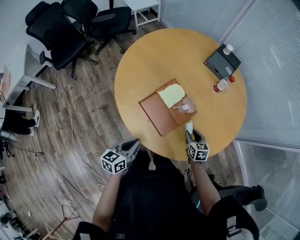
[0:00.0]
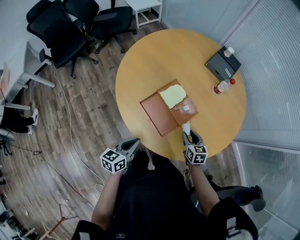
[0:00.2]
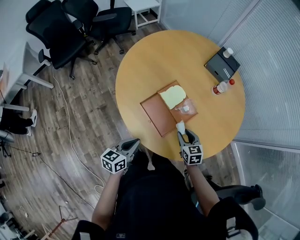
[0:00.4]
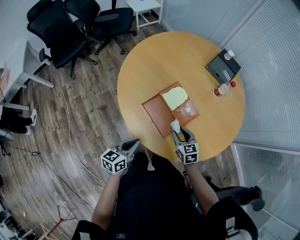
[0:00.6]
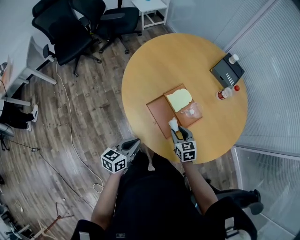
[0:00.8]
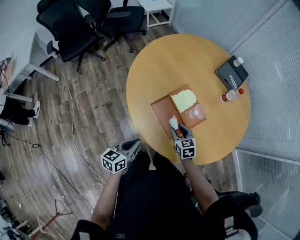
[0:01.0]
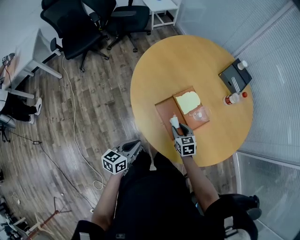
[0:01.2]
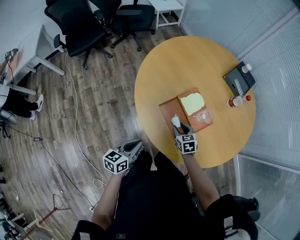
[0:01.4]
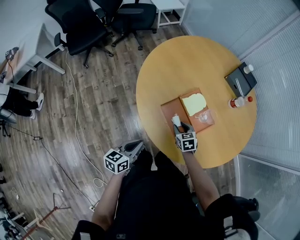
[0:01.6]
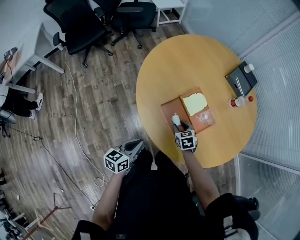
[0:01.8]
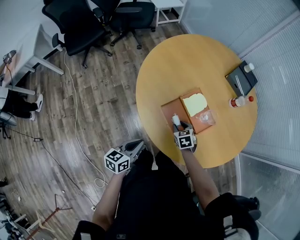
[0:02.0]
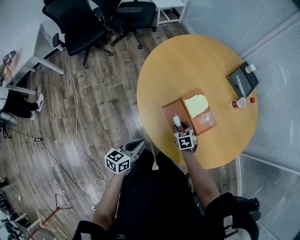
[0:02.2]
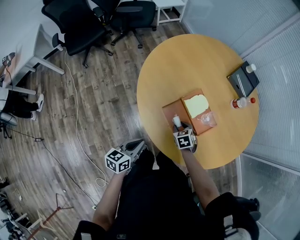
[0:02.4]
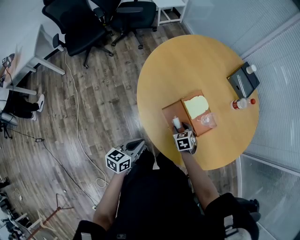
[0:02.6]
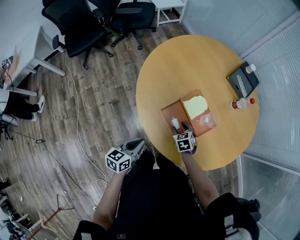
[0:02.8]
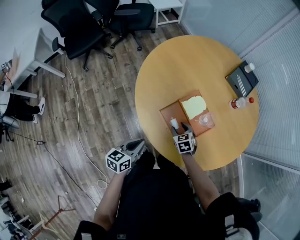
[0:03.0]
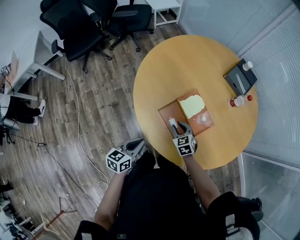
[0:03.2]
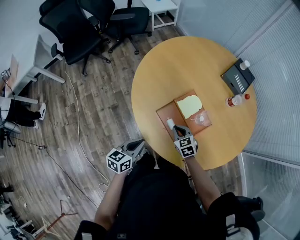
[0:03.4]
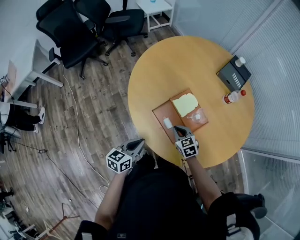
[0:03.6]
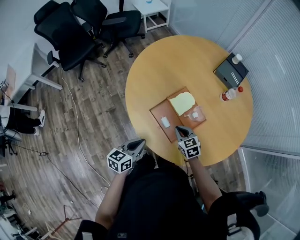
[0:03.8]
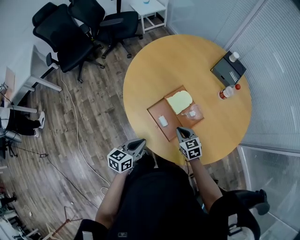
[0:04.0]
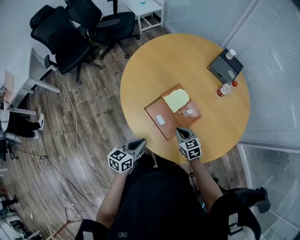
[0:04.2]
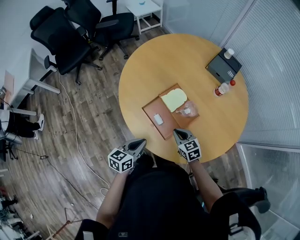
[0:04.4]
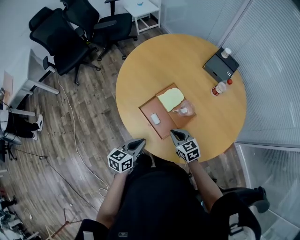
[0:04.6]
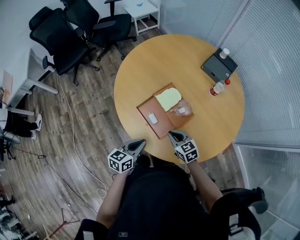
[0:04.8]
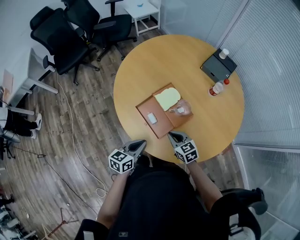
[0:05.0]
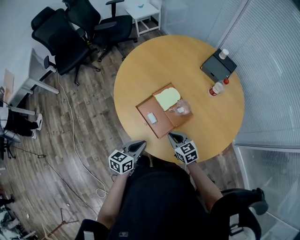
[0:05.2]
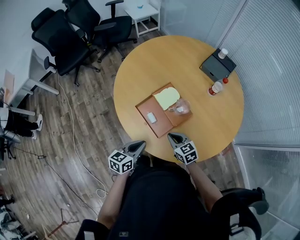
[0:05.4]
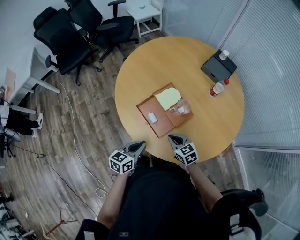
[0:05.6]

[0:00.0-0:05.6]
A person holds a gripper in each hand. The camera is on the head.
0:00.0 to 0:01.4: The left gripper shifts some 10 cm to the left. The right gripper goes some 20 cm to the left, and swivels some 20 degrees.
0:01.4 to 0:02.8: The grippers stay close to where they were, moving slightly.
0:02.8 to 0:04.2: The right gripper goes approximately 10 cm to the right and upward, and closes up, while the left gripper goes some 10 cm to the right.
0:04.2 to 0:05.6: The right gripper travels backward by roughly 5 cm. Meanwhile the left gripper goes approximately 5 cm to the right.

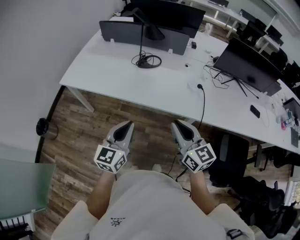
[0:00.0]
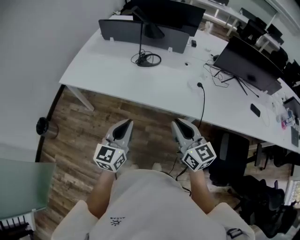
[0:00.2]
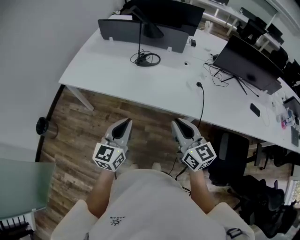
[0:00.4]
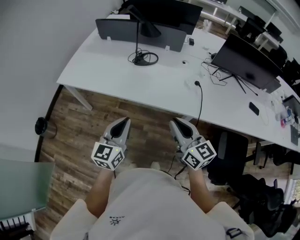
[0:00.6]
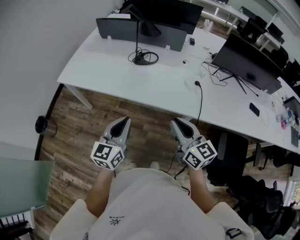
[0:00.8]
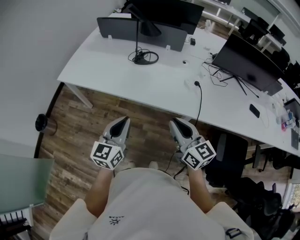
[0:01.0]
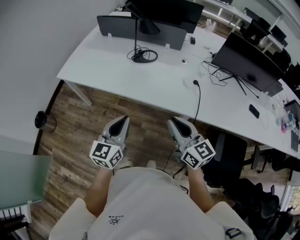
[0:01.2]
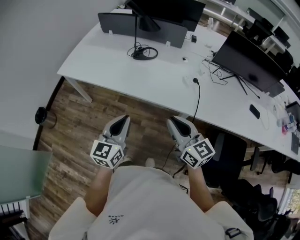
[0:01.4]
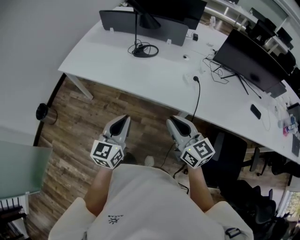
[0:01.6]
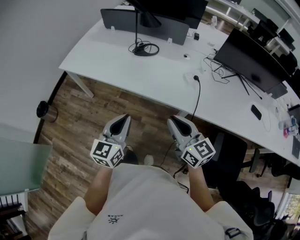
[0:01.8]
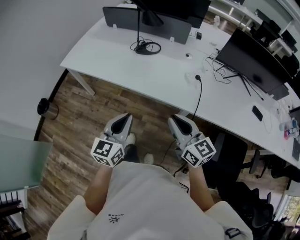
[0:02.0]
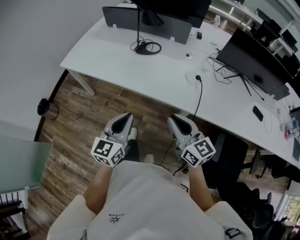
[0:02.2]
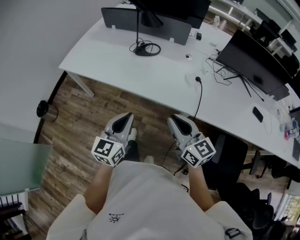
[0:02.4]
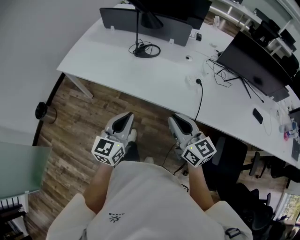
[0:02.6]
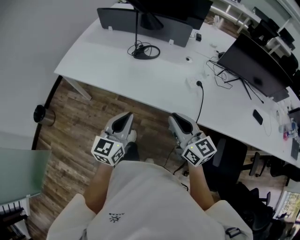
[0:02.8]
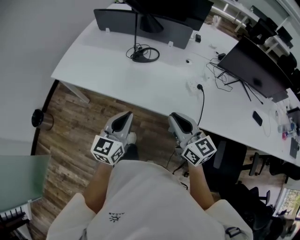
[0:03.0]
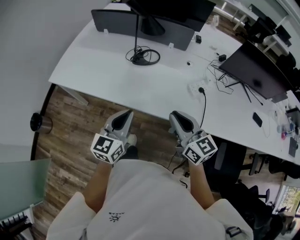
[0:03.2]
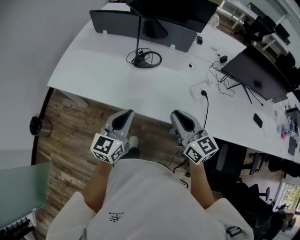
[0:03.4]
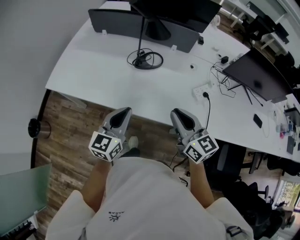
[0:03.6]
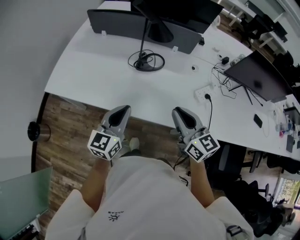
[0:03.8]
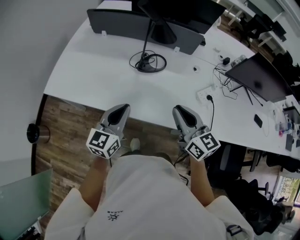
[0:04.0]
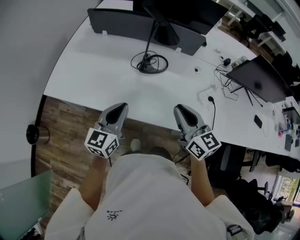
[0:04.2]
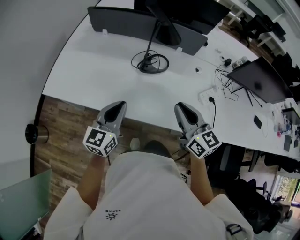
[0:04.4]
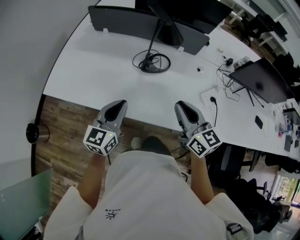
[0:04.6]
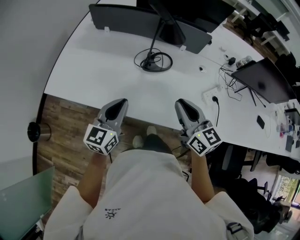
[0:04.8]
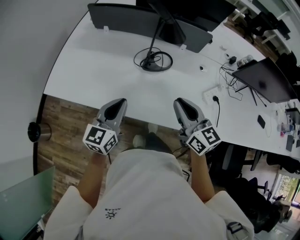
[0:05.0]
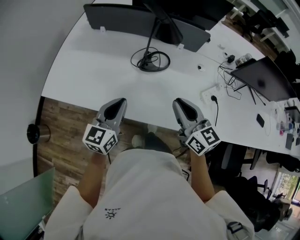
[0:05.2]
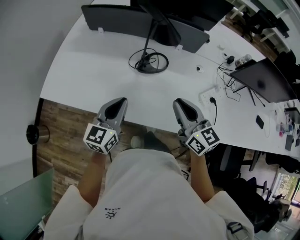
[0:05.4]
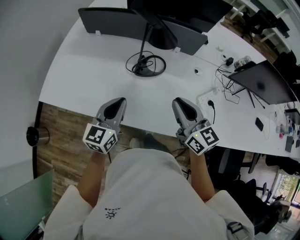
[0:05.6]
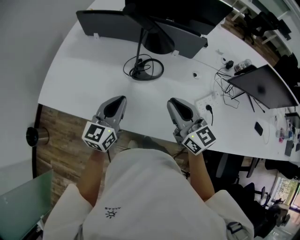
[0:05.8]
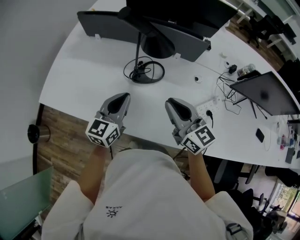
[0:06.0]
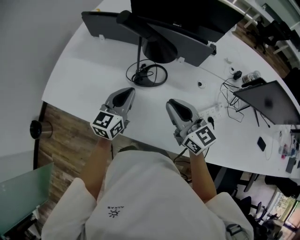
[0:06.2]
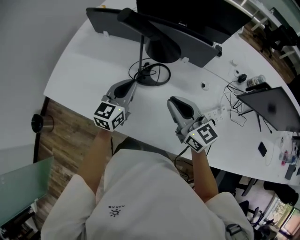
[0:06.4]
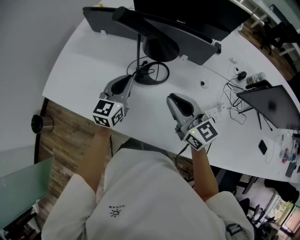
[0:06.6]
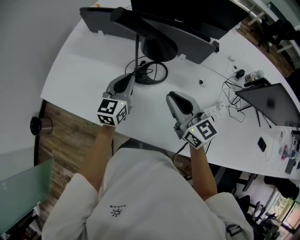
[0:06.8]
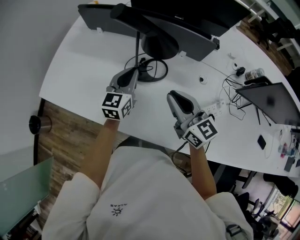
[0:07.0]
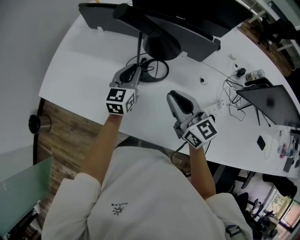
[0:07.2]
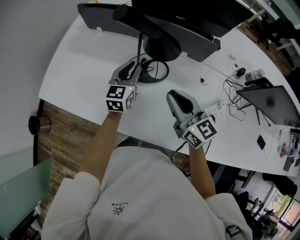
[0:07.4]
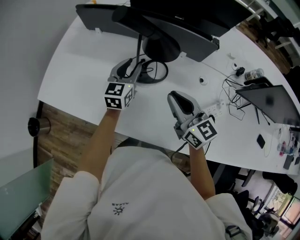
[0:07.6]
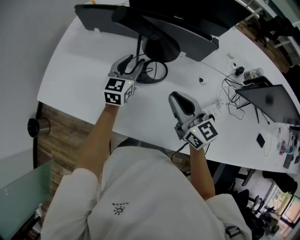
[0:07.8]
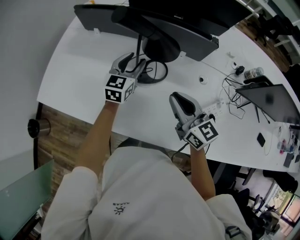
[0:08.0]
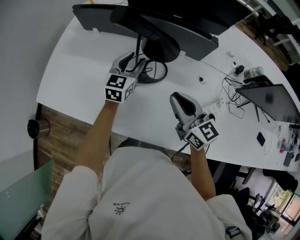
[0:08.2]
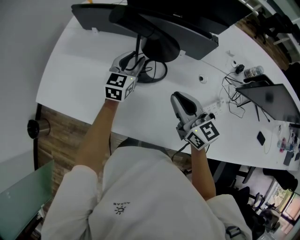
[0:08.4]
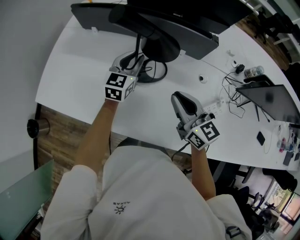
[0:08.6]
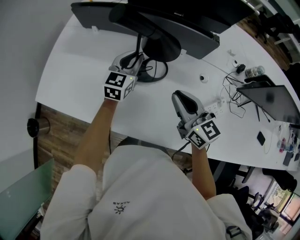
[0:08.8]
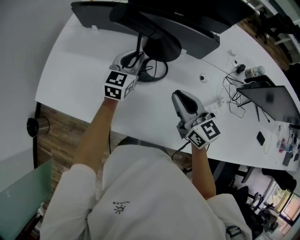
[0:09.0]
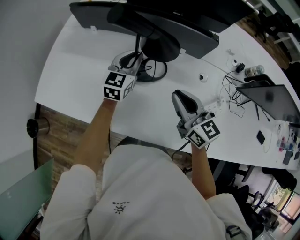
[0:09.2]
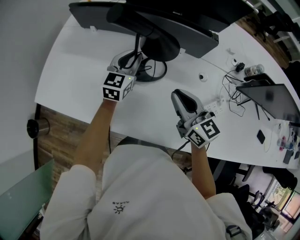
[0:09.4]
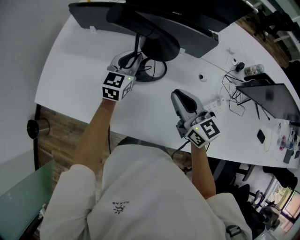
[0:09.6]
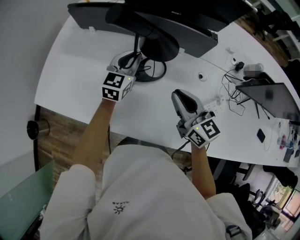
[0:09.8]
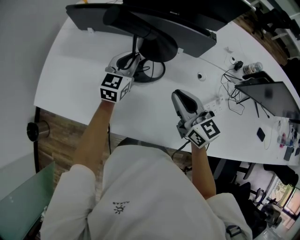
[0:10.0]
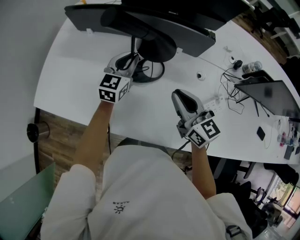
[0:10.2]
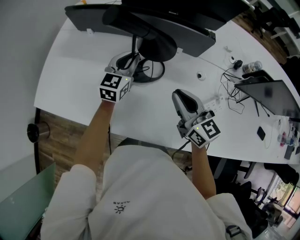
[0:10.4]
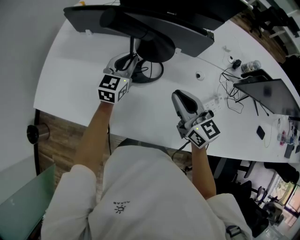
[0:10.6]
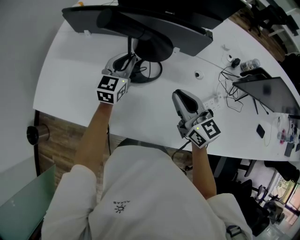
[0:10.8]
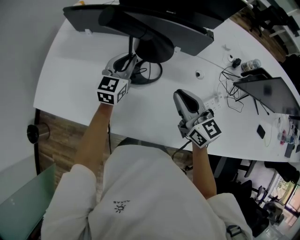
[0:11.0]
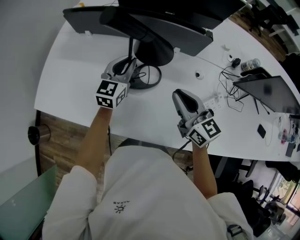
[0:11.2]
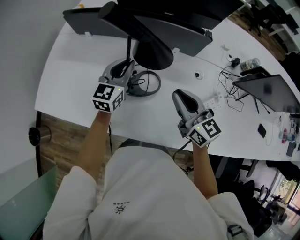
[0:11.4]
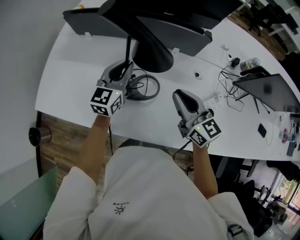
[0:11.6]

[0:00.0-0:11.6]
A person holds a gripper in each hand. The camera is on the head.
0:00.0 to 0:01.4: Both grippers travel together to the right, about 5 cm.
0:01.4 to 0:02.8: Both grippers travel together forward, some 5 cm.
0:02.8 to 0:04.4: The grippers both shift forward and to the left by roughly 30 cm.
0:04.4 to 0:05.8: The left gripper goes about 10 cm forward and to the right; the right gripper goes about 10 cm forward.
0:05.8 to 0:07.2: The right gripper moves forward, about 10 cm; the left gripper goes some 20 cm forward and to the right.
0:07.2 to 0:08.8: The left gripper is displaced forward by some 5 cm, and opens, then closes once more.
0:08.8 to 0:10.2: Neither gripper changes place.
0:10.2 to 0:11.6: The left gripper changes place by roughly 5 cm.

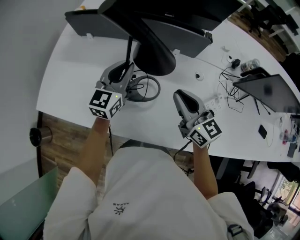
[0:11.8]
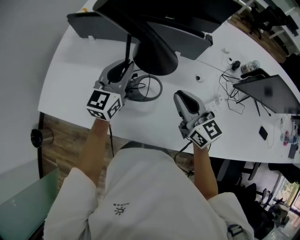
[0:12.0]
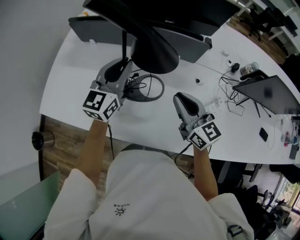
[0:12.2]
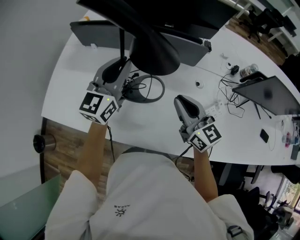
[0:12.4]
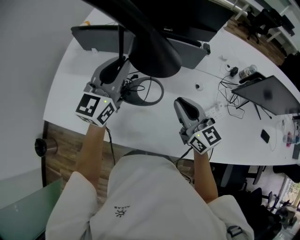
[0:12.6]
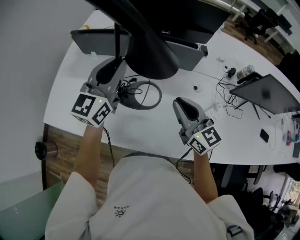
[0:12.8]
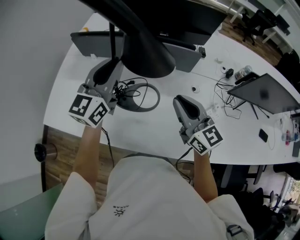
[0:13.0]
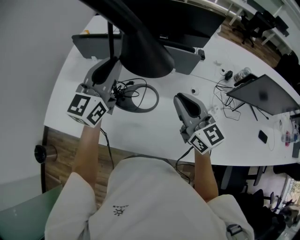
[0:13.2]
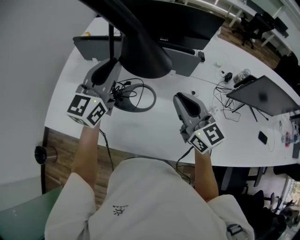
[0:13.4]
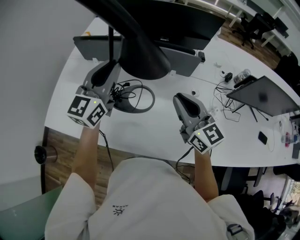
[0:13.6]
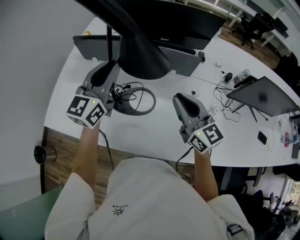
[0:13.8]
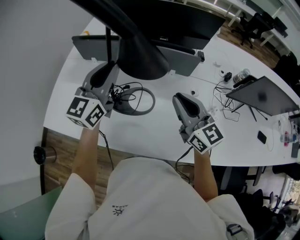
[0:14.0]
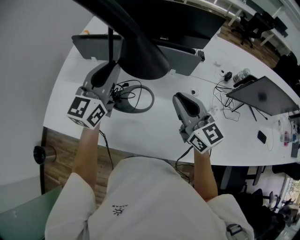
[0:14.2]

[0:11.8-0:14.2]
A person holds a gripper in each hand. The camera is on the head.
0:11.8 to 0:13.0: The right gripper shifts some 5 cm upward. The left gripper travels upward by some 15 cm.
0:13.0 to 0:14.2: The grippers make only small movements.

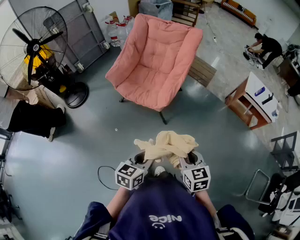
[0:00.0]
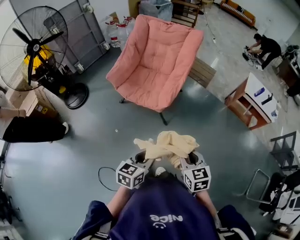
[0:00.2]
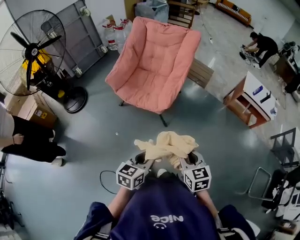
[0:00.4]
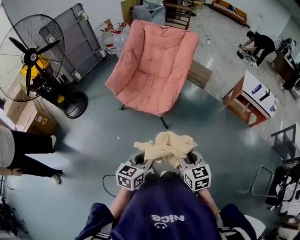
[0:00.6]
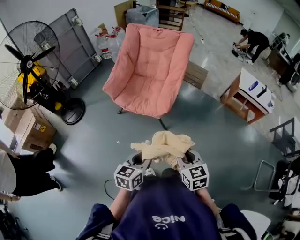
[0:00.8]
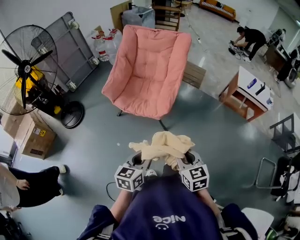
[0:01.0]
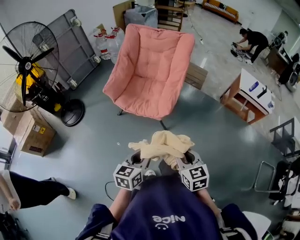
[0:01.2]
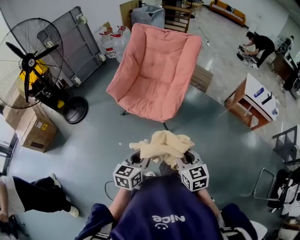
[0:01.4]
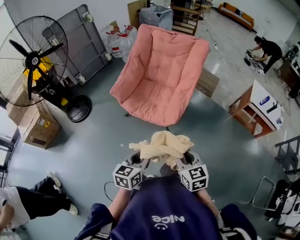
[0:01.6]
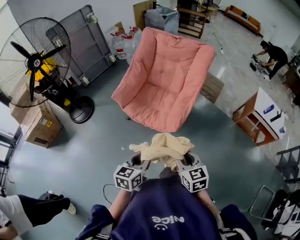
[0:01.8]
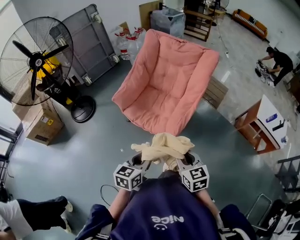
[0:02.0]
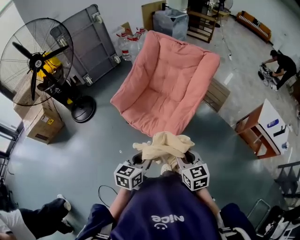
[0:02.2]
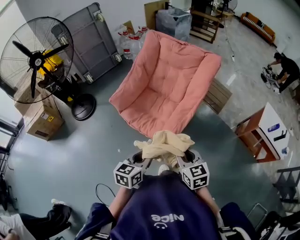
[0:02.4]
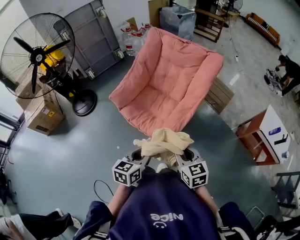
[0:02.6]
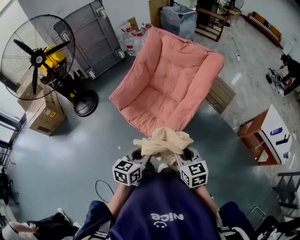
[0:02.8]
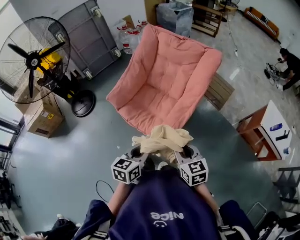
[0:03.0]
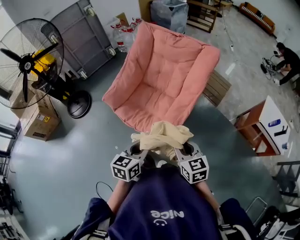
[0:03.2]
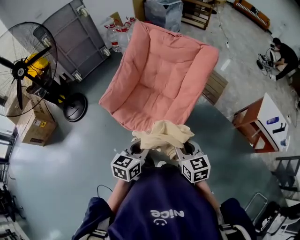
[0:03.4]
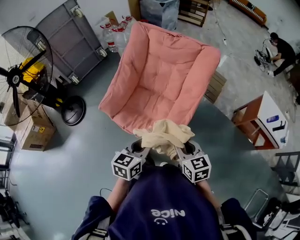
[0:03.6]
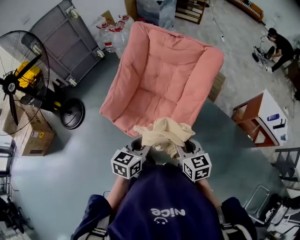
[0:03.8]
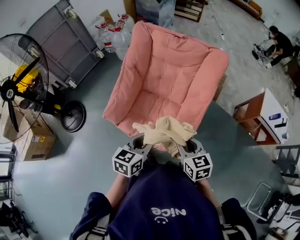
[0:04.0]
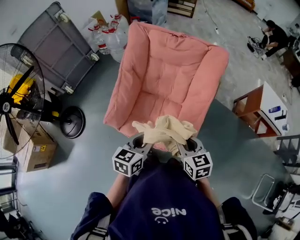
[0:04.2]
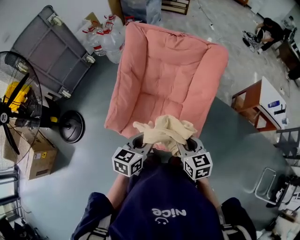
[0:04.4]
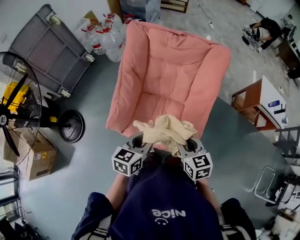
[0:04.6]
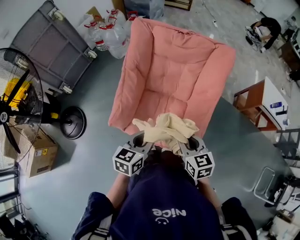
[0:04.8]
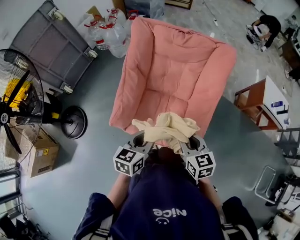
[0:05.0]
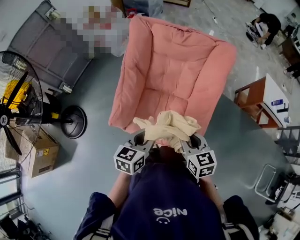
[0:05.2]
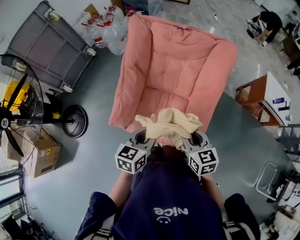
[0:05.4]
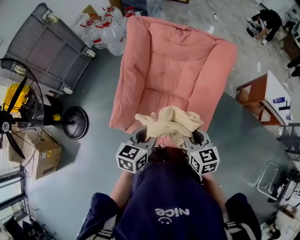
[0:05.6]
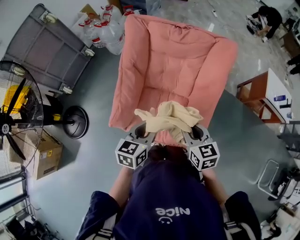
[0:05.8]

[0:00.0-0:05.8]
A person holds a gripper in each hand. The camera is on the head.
0:00.0 to 0:01.4: The grippers both shift to the left and forward by approximately 15 cm.
0:01.4 to 0:02.8: Both grippers travel together forward and to the right, some 30 cm.
0:02.8 to 0:04.4: Both grippers move forward and to the left, roughly 35 cm. The right gripper changes its angle by approximately 20 degrees, while the left gripper changes its angle by about 20 degrees.
0:04.4 to 0:05.8: The grippers both shift forward by some 10 cm.
